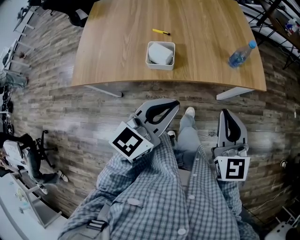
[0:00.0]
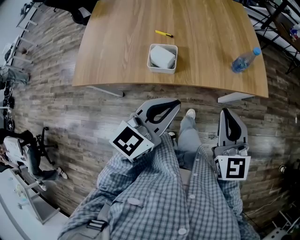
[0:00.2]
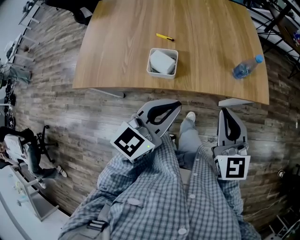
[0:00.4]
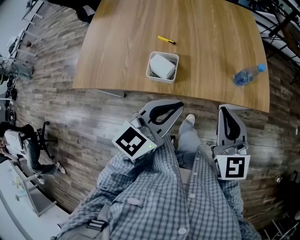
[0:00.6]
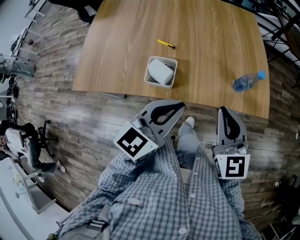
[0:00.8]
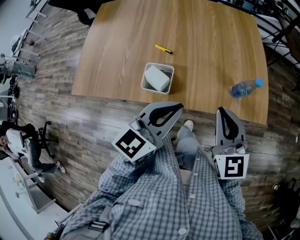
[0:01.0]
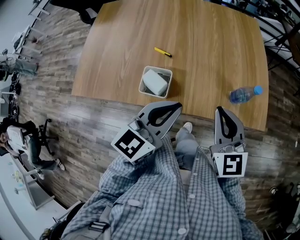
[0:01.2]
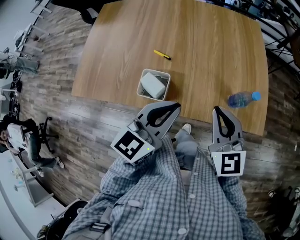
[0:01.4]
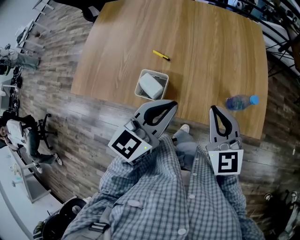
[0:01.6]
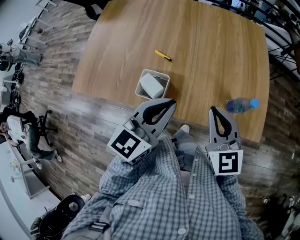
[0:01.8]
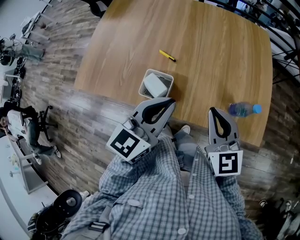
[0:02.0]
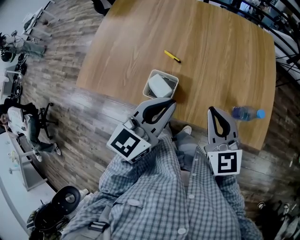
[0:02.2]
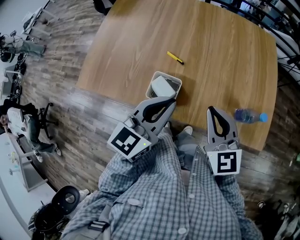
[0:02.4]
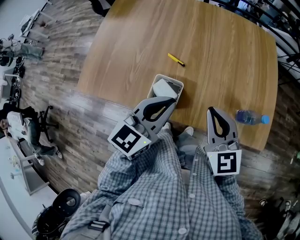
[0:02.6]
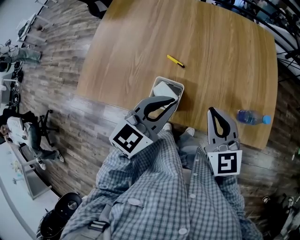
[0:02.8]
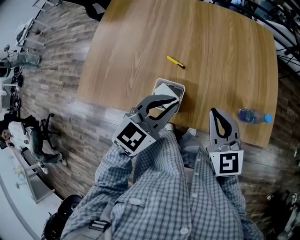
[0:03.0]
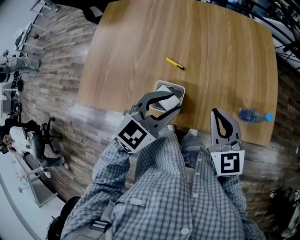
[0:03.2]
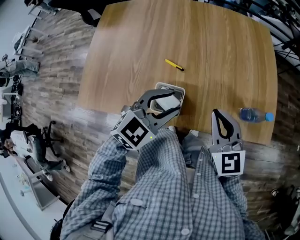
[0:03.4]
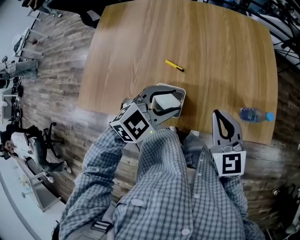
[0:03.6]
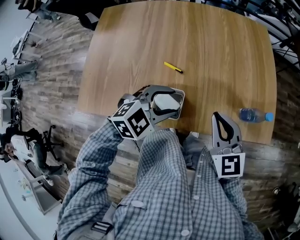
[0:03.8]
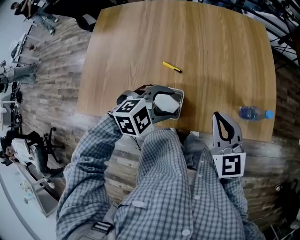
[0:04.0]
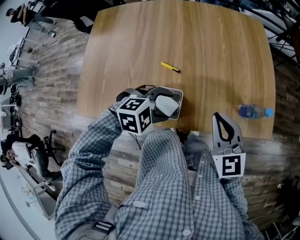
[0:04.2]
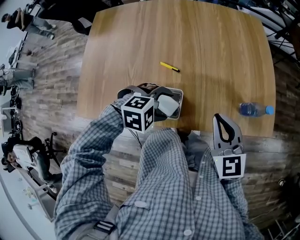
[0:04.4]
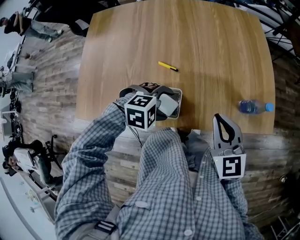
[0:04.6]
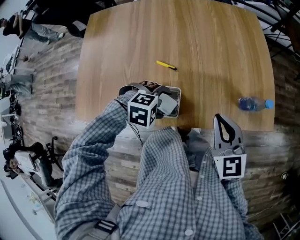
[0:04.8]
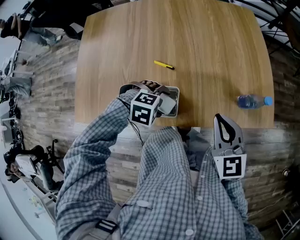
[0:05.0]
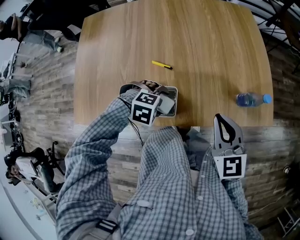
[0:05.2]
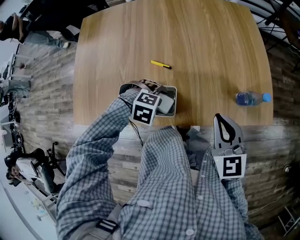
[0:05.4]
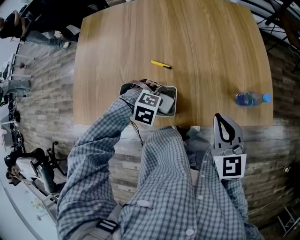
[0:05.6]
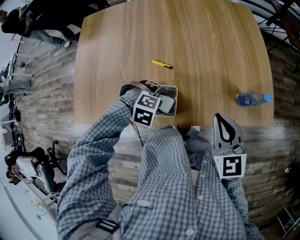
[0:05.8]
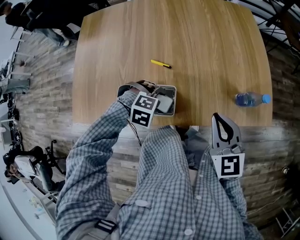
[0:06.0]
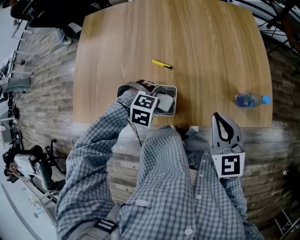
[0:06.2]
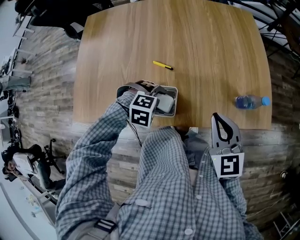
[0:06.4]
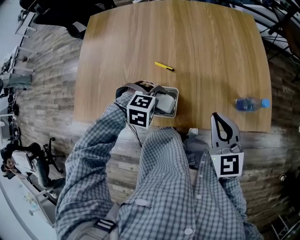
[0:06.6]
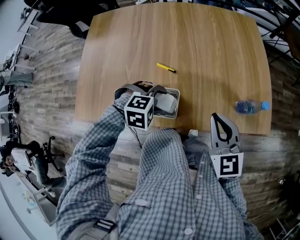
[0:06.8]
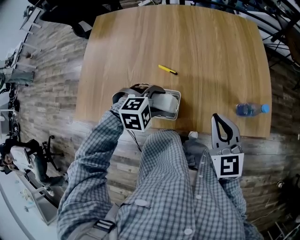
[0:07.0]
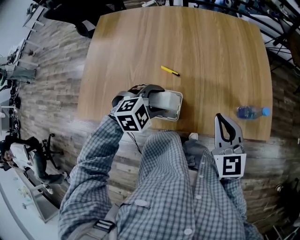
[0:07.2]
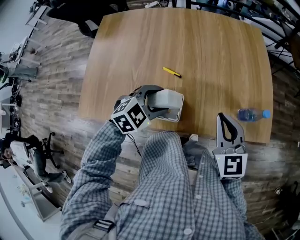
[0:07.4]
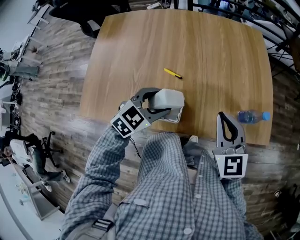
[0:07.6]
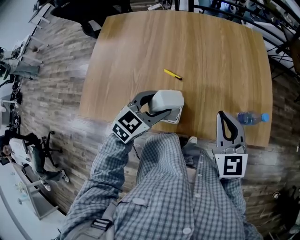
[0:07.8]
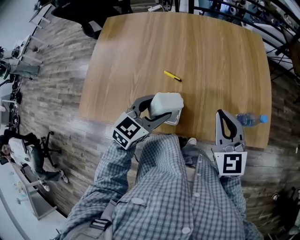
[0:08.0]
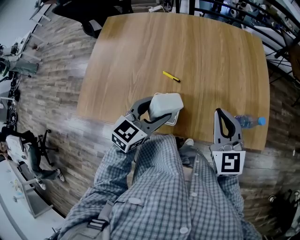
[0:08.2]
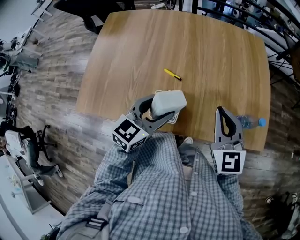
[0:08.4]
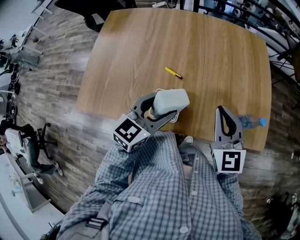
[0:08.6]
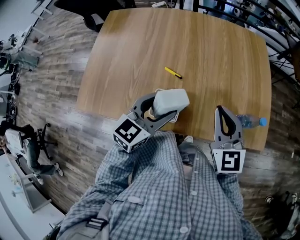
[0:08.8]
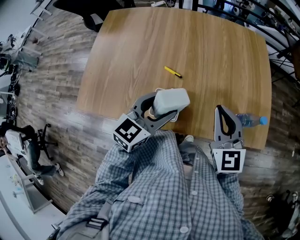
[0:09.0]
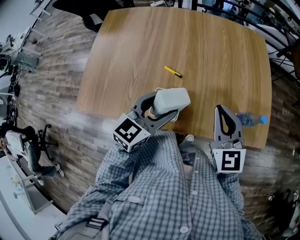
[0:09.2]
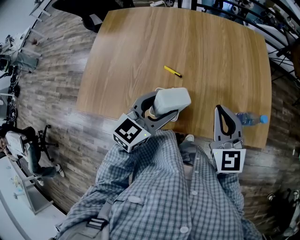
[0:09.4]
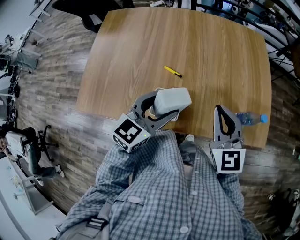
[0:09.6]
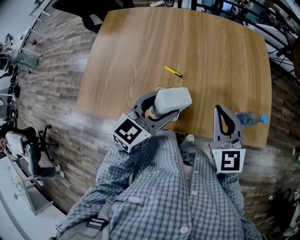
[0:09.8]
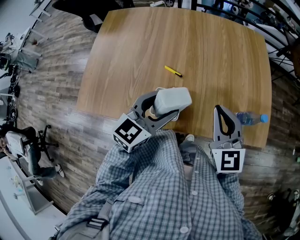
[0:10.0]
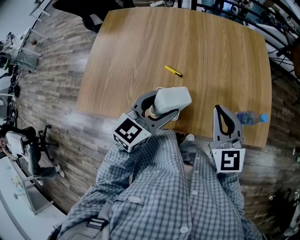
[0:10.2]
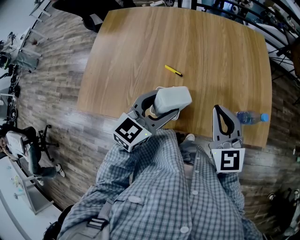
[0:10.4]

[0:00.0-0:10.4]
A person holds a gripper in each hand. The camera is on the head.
0:00.0 to 0:01.4: The grippers both shift forward by roughly 20 cm.
0:01.4 to 0:03.0: The left gripper travels to the left and forward by about 10 cm, while the right gripper is displaced to the left by some 10 cm.
0:03.0 to 0:04.4: The left gripper heads downward, covering about 10 cm, tips its fingers downward by roughly 40 degrees, and opens up.
0:04.4 to 0:06.0: The left gripper moves downward, roughly 10 cm, and changes its angle by roughly 20 degrees.
0:06.0 to 0:07.4: The left gripper shifts about 10 cm upward, and points its fingers approximately 30 degrees further upward.
0:07.4 to 0:09.0: The left gripper is displaced upward by approximately 5 cm, and rotates some 40 degrees.
0:09.0 to 0:10.4: Neither gripper changes place.

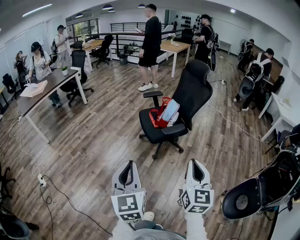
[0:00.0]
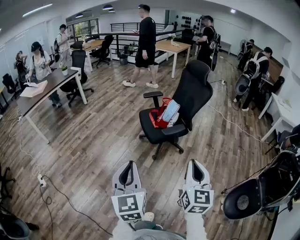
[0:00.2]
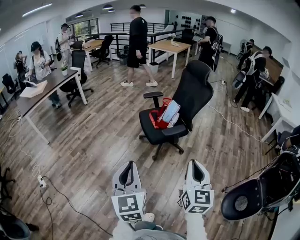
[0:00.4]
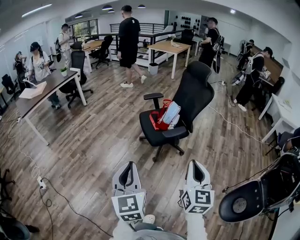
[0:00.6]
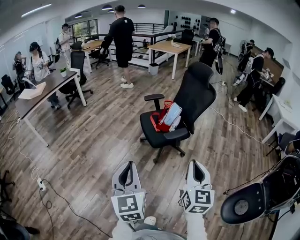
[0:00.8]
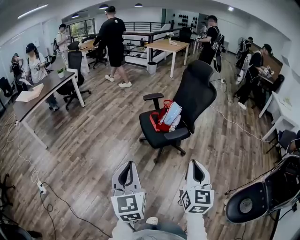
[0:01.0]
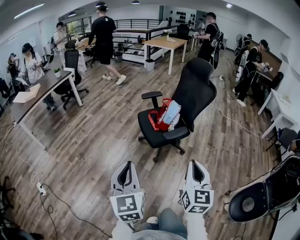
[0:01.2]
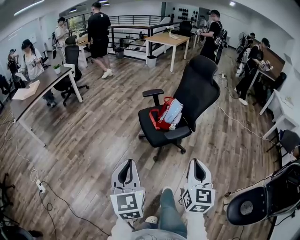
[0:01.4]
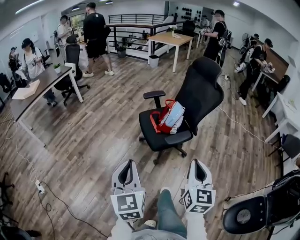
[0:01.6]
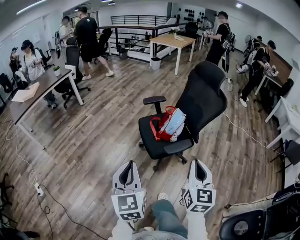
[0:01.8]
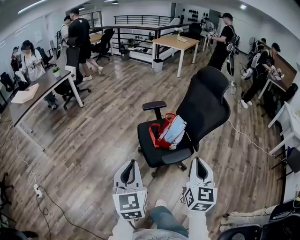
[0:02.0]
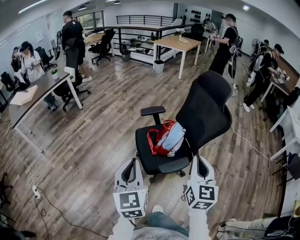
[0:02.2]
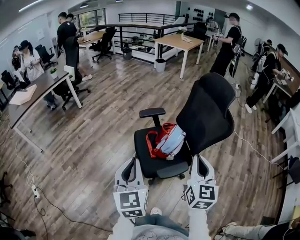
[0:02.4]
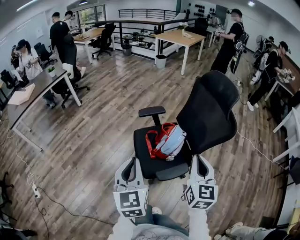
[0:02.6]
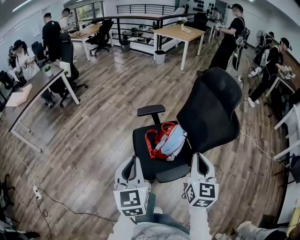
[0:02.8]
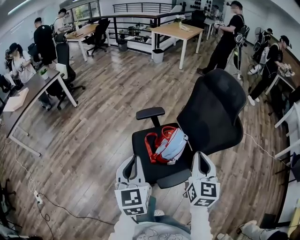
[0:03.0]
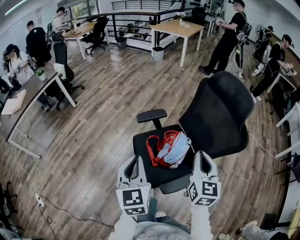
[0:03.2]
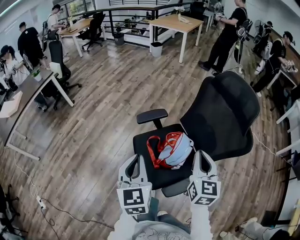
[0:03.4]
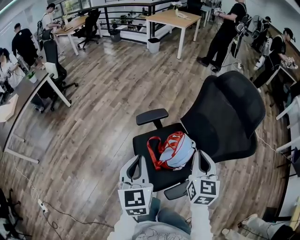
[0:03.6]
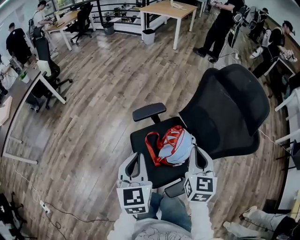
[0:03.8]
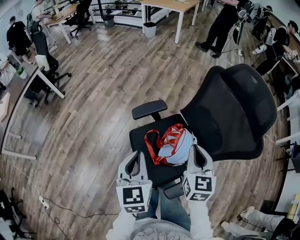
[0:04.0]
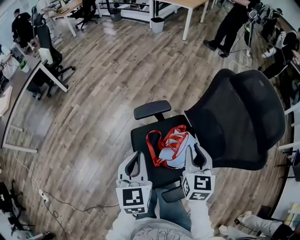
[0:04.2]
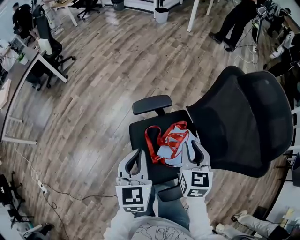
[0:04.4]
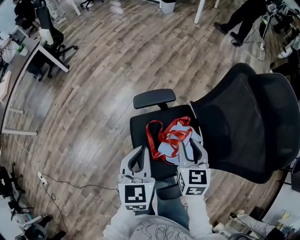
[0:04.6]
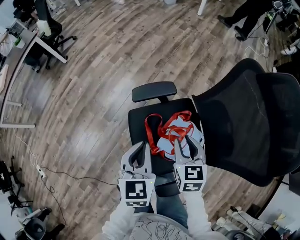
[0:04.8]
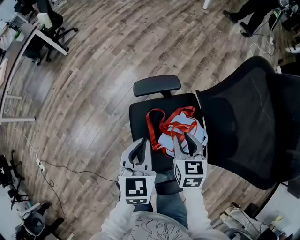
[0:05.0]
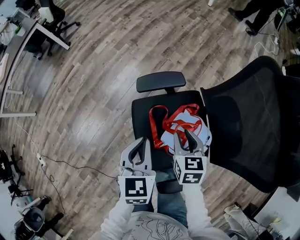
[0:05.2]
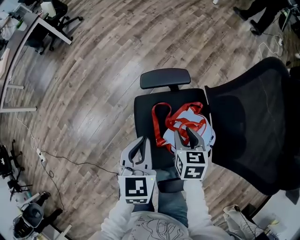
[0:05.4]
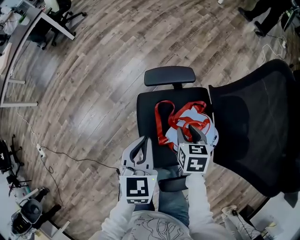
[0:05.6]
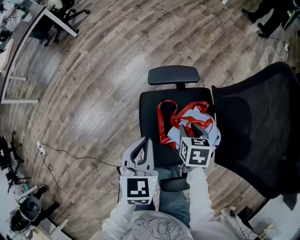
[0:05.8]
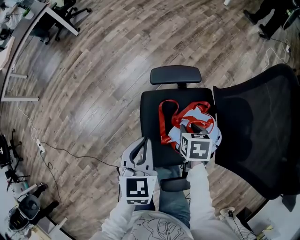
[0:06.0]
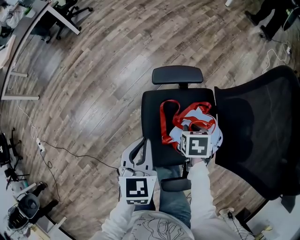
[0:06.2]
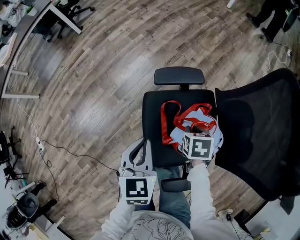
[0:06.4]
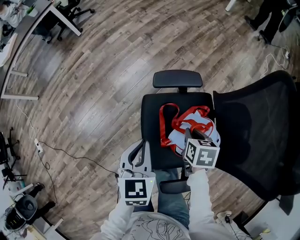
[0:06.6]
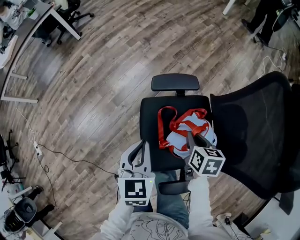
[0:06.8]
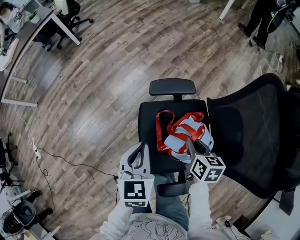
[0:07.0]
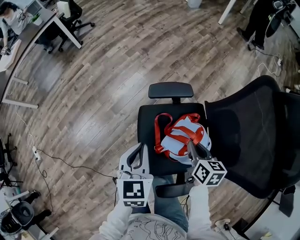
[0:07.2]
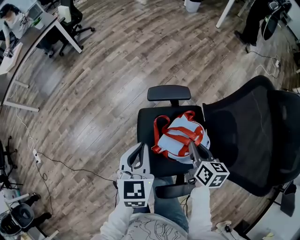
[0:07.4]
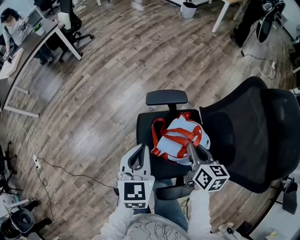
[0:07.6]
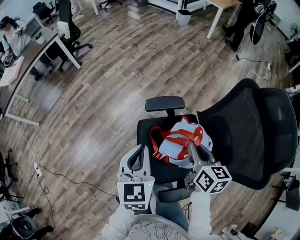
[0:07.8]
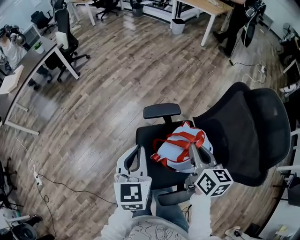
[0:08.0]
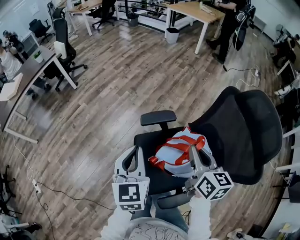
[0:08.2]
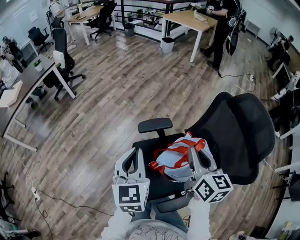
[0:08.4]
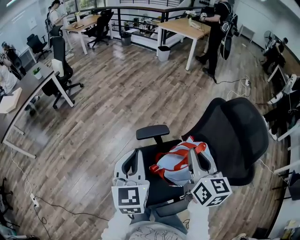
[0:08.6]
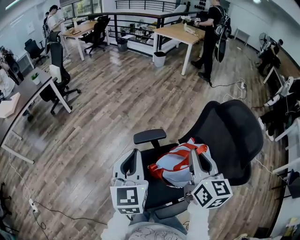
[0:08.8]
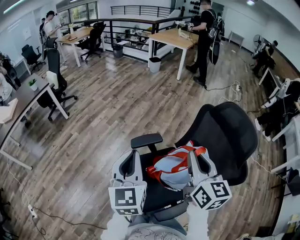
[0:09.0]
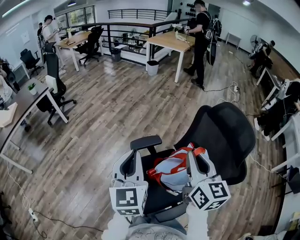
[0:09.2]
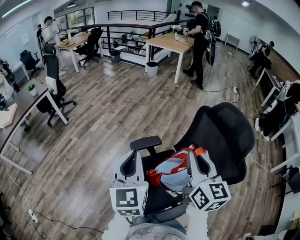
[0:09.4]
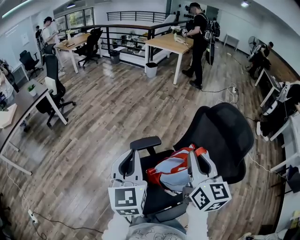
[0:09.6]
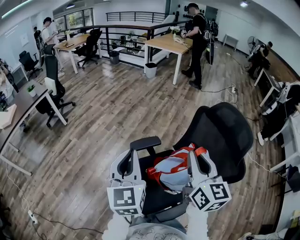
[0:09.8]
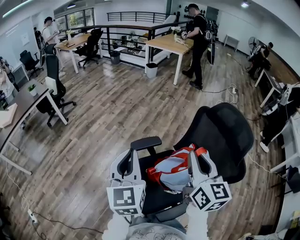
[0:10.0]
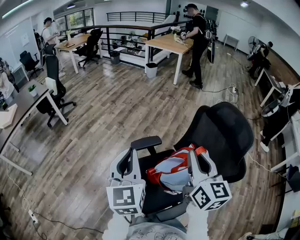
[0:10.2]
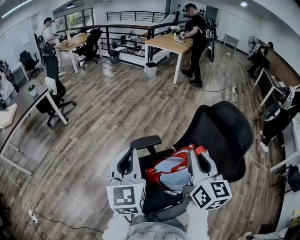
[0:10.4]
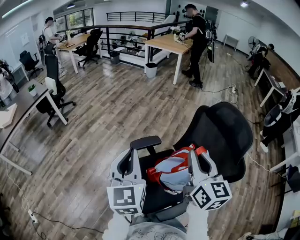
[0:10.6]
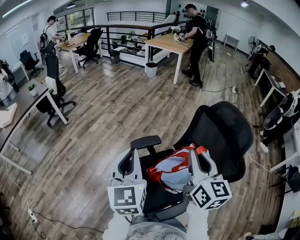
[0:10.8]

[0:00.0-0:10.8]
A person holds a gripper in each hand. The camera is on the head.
0:00.0 to 0:01.6: The two grippers go about 15 cm forward.
0:01.6 to 0:03.0: The two grippers travel together, forward, some 40 cm.
0:03.0 to 0:04.6: Both grippers travel together forward and downward, about 30 cm. The right gripper turns by roughly 30 degrees, and opens.
0:04.6 to 0:06.2: The right gripper shifts some 20 cm downward, and points its fingers approximately 40 degrees further downward; the left gripper travels downward and to the left by some 10 cm.
0:06.2 to 0:07.8: The right gripper moves upward, roughly 20 cm, and points its fingers approximately 50 degrees further upward; the left gripper is displaced upward by roughly 15 cm.
0:07.8 to 0:09.2: The grippers both shift upward by approximately 20 cm. The left gripper rotates roughly 20 degrees, while the right gripper swivels about 30 degrees.
0:09.2 to 0:10.8: There are only small adjustments of the grippers.

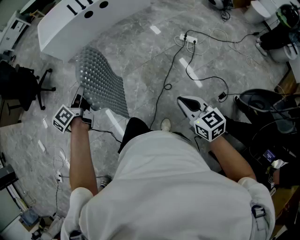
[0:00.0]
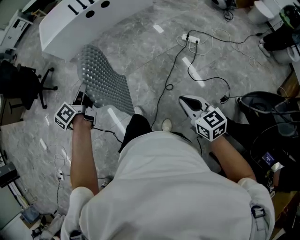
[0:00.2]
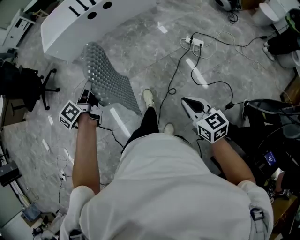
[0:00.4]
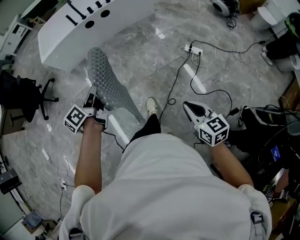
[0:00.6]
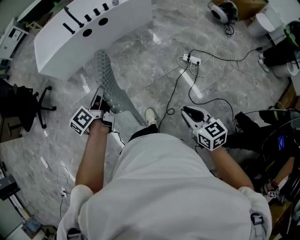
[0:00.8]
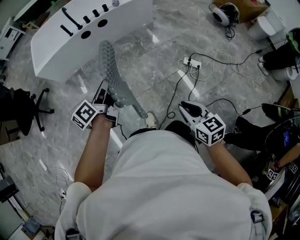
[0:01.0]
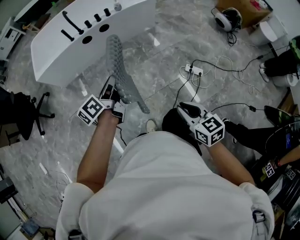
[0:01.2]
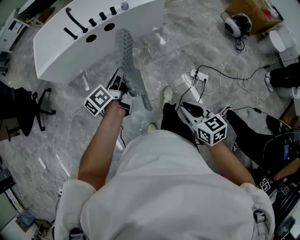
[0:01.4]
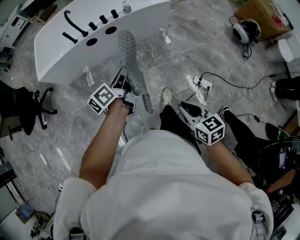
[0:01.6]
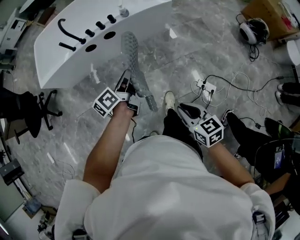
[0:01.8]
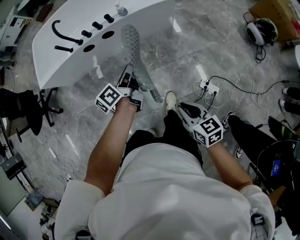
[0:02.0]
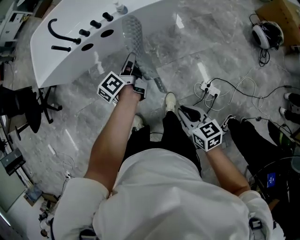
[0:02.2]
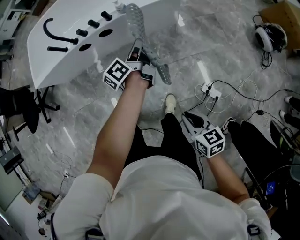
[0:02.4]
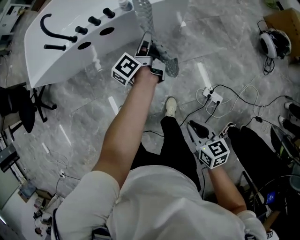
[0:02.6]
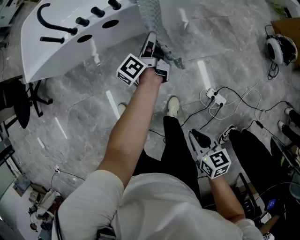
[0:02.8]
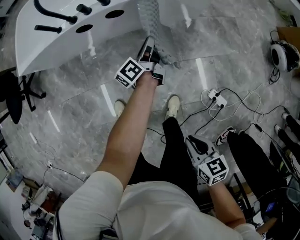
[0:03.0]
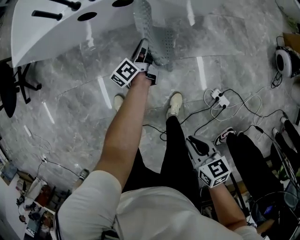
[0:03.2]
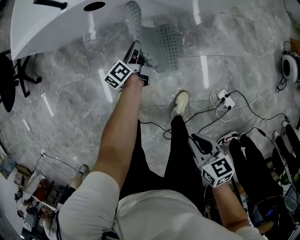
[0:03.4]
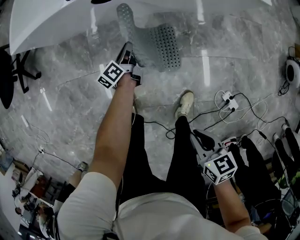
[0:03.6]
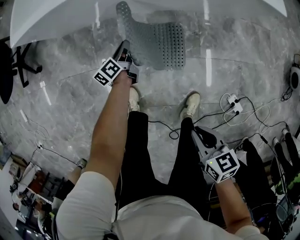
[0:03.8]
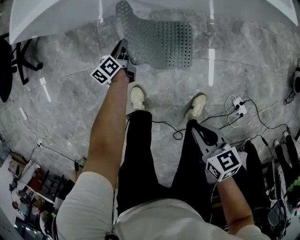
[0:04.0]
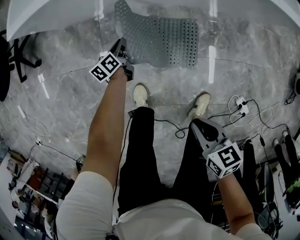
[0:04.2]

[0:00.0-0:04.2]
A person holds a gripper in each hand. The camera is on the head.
0:00.0 to 0:01.4: The two grippers travel together, forward, some 50 cm.
0:01.4 to 0:02.8: The left gripper moves forward, to the right and downward, about 50 cm, and rotates some 20 degrees. The right gripper heads forward, downward and to the right, covering approximately 35 cm.
0:02.8 to 0:04.2: The right gripper heads to the left, forward and downward, covering roughly 35 cm, and turns by roughly 20 degrees; the left gripper heads to the left and downward, covering approximately 60 cm, and tilts its fingers roughly 30 degrees downward.
